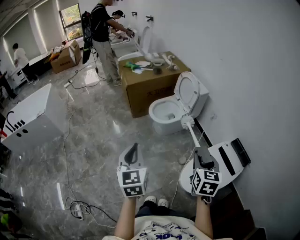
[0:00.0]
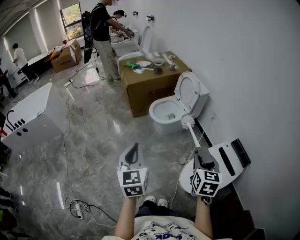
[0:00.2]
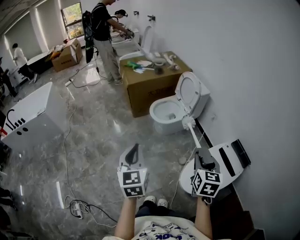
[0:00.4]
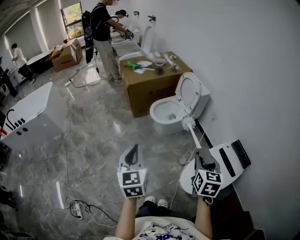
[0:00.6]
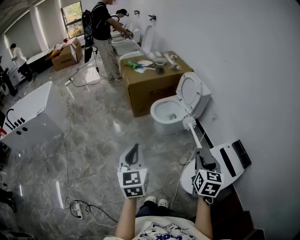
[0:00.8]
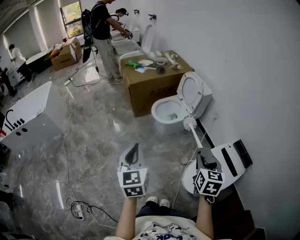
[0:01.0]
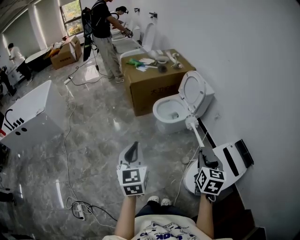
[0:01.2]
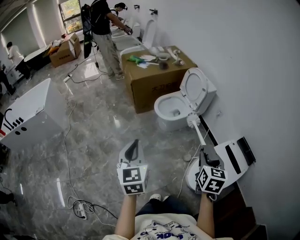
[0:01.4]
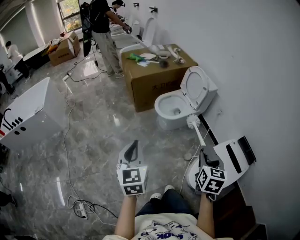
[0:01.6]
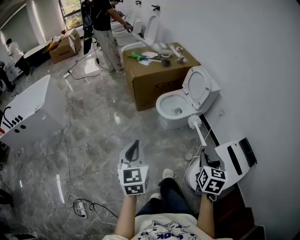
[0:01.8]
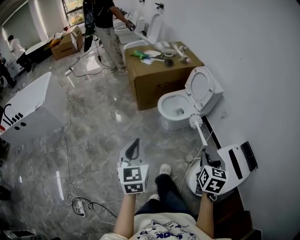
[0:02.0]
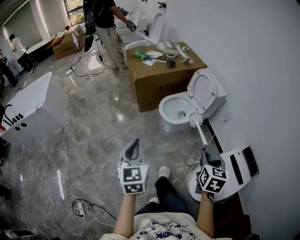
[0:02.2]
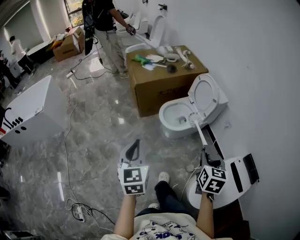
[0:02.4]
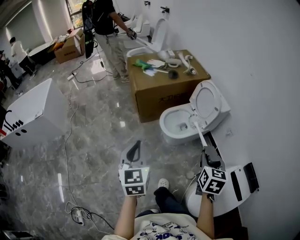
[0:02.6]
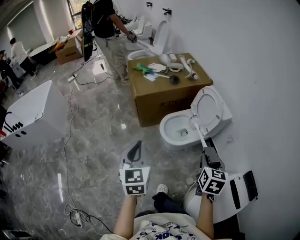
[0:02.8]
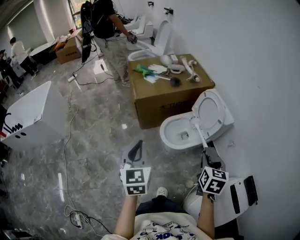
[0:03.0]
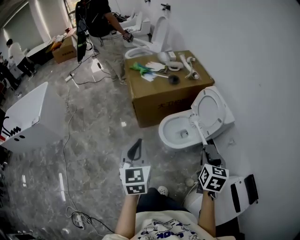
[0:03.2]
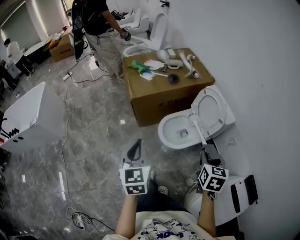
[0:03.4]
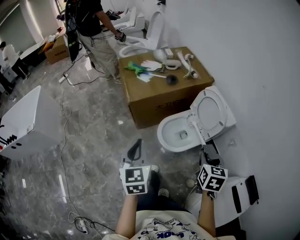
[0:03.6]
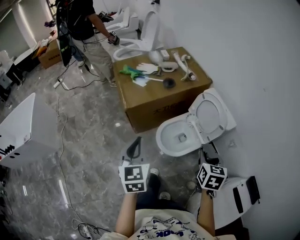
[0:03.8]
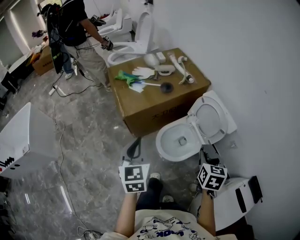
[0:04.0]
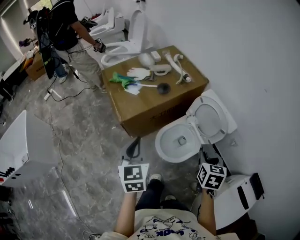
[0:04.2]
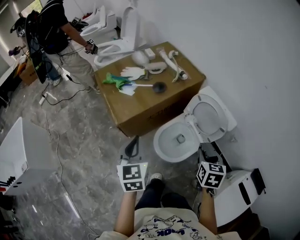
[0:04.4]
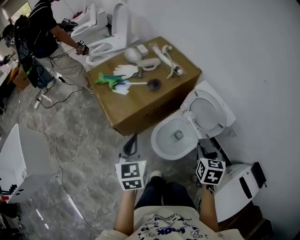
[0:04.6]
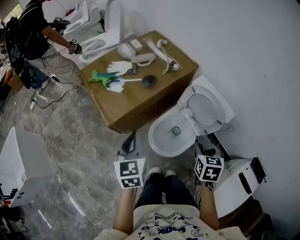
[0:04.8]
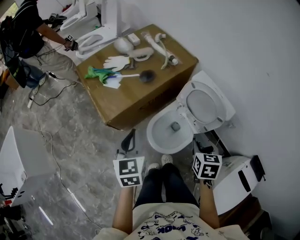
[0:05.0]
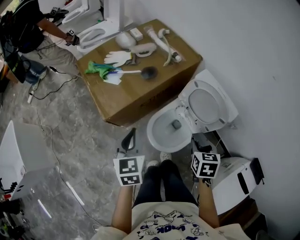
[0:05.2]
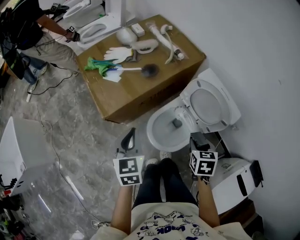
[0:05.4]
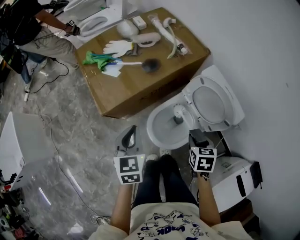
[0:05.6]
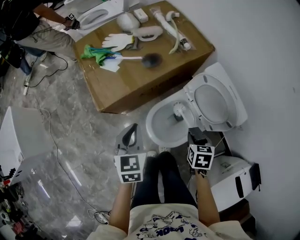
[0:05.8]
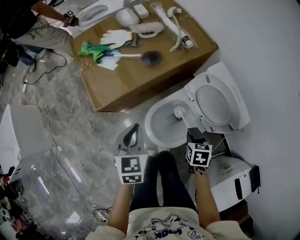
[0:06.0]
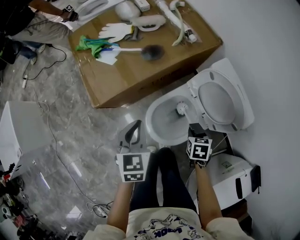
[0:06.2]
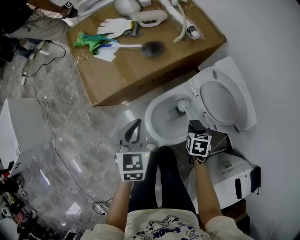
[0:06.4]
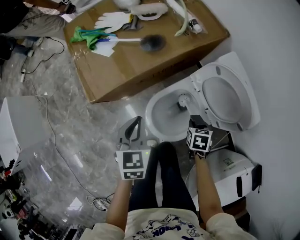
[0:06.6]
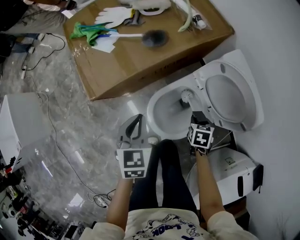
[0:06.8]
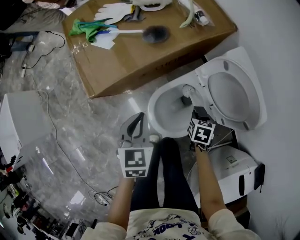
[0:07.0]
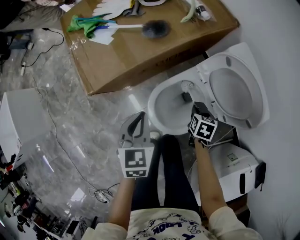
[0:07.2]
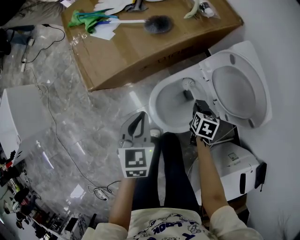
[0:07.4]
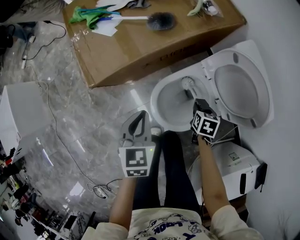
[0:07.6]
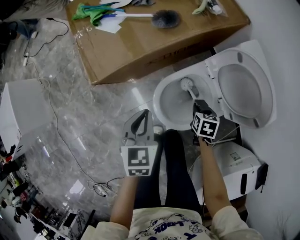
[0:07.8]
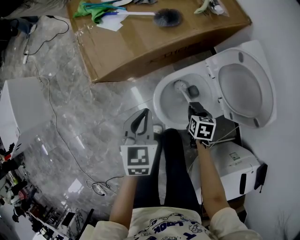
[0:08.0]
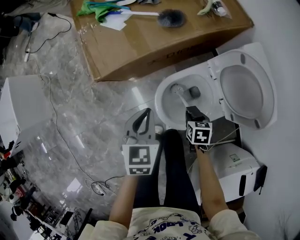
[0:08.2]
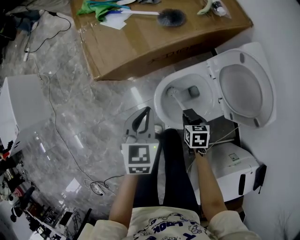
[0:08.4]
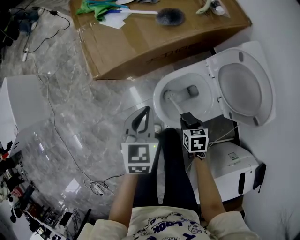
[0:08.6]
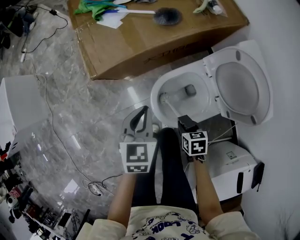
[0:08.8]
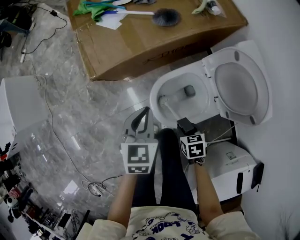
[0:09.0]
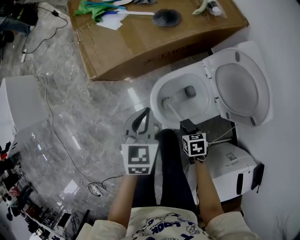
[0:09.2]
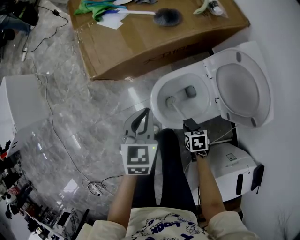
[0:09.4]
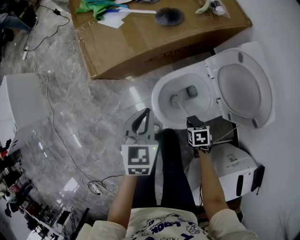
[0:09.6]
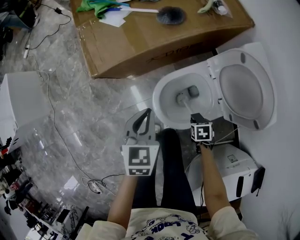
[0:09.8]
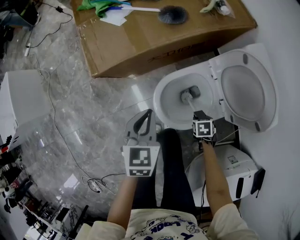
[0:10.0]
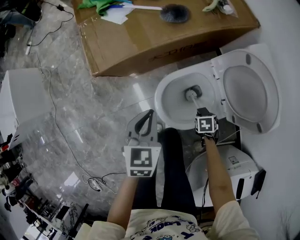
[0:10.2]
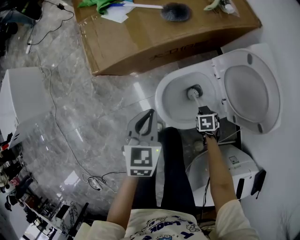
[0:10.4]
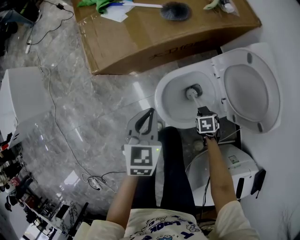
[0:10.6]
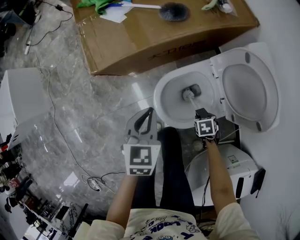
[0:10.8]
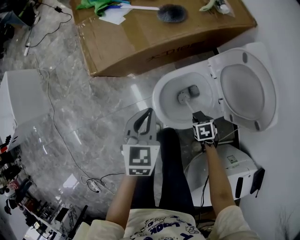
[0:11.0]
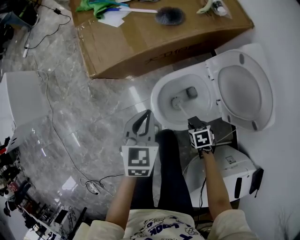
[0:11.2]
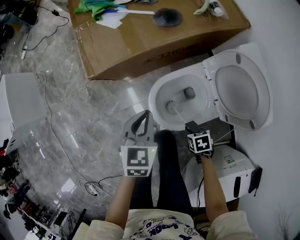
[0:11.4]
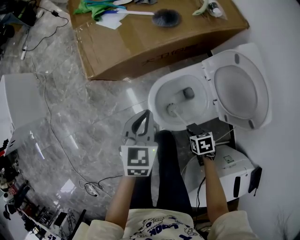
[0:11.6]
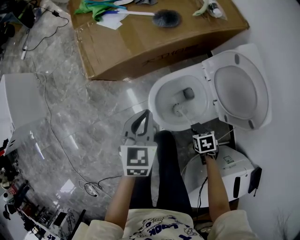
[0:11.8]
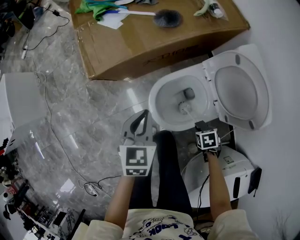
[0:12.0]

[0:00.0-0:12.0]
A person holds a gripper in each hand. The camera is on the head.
0:00.0 to 0:01.6: The grippers both shift to the left by roughly 5 cm.
0:01.6 to 0:03.0: The grippers both shift forward by about 30 cm.
0:03.0 to 0:04.4: The two grippers go about 25 cm forward.
0:04.4 to 0:06.0: Both grippers travel together downward and forward, approximately 20 cm. The right gripper turns by roughly 20 degrees.
0:06.0 to 0:07.6: The grippers both shift downward by about 10 cm.
0:07.6 to 0:09.0: The right gripper heads backward and to the left, covering about 15 cm, and swivels approximately 30 degrees.
0:09.0 to 0:10.4: The right gripper travels downward by roughly 10 cm.
0:10.4 to 0:12.0: The right gripper changes place by some 10 cm.

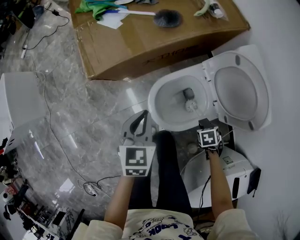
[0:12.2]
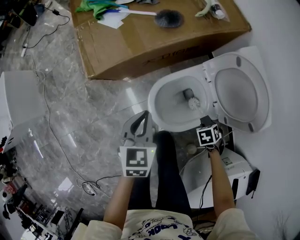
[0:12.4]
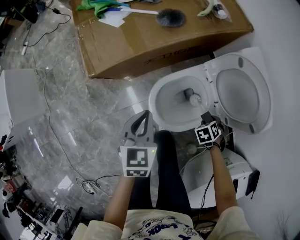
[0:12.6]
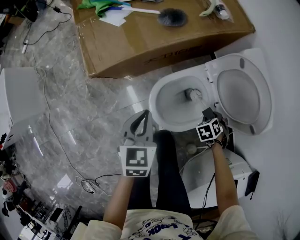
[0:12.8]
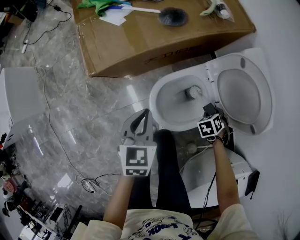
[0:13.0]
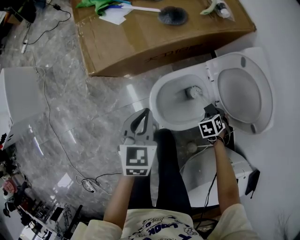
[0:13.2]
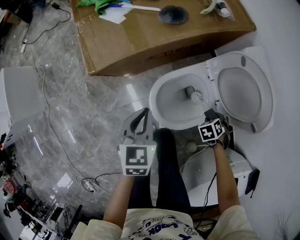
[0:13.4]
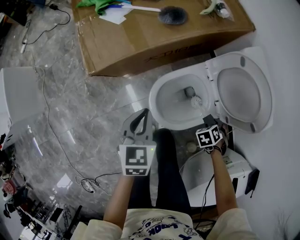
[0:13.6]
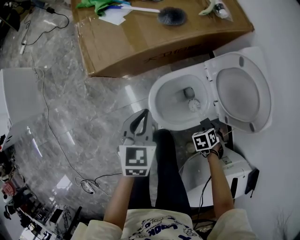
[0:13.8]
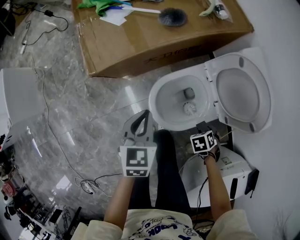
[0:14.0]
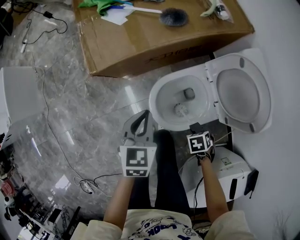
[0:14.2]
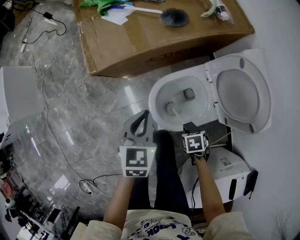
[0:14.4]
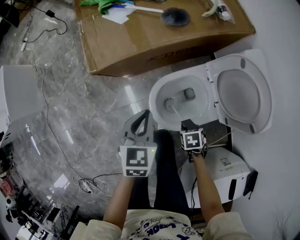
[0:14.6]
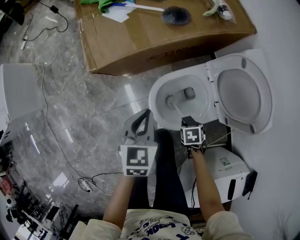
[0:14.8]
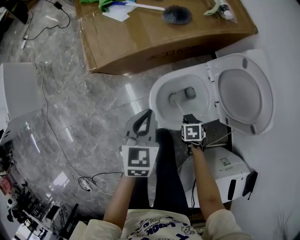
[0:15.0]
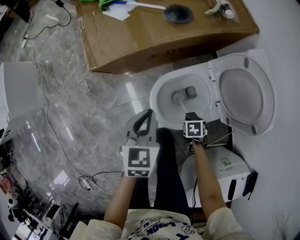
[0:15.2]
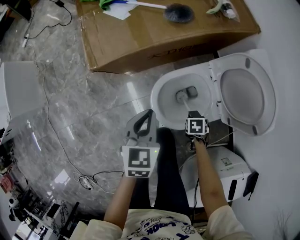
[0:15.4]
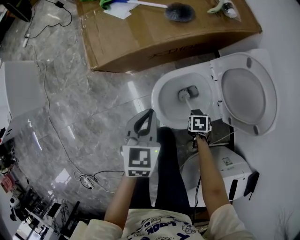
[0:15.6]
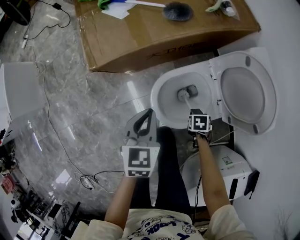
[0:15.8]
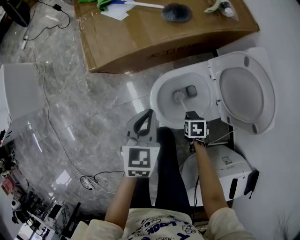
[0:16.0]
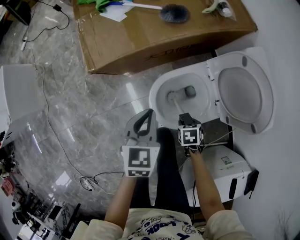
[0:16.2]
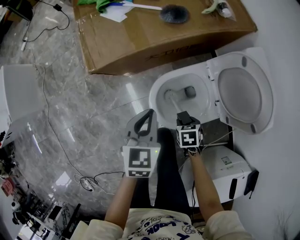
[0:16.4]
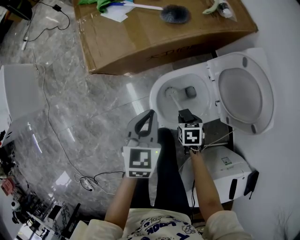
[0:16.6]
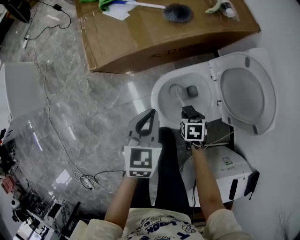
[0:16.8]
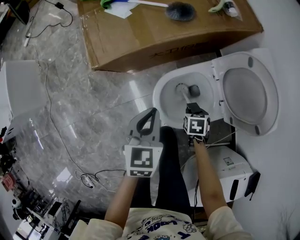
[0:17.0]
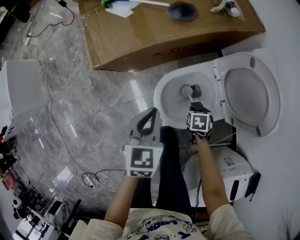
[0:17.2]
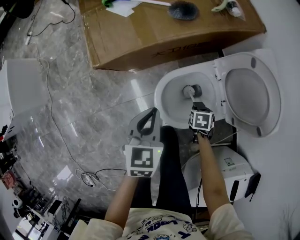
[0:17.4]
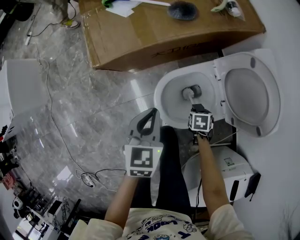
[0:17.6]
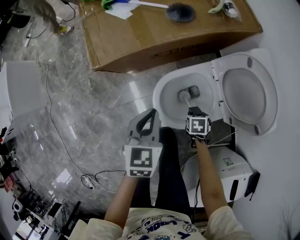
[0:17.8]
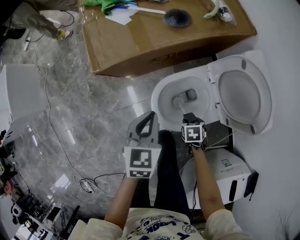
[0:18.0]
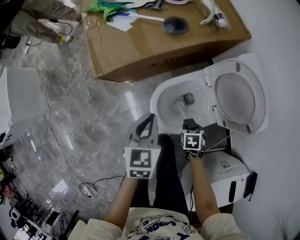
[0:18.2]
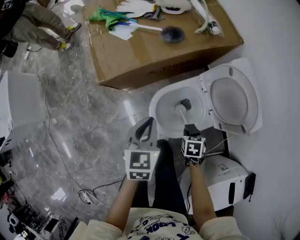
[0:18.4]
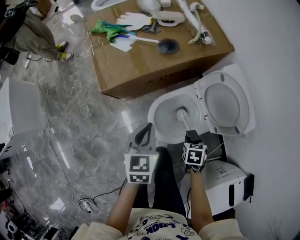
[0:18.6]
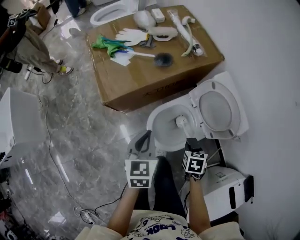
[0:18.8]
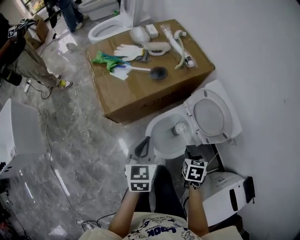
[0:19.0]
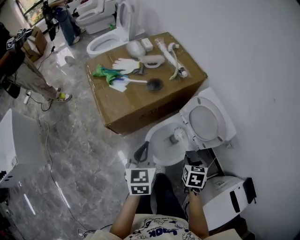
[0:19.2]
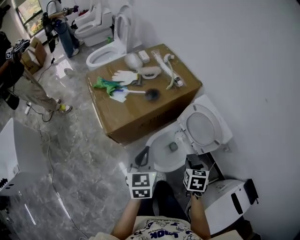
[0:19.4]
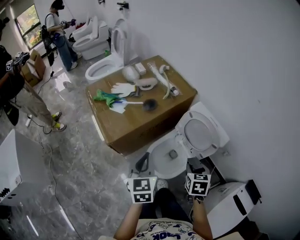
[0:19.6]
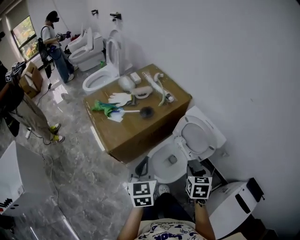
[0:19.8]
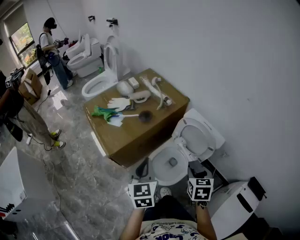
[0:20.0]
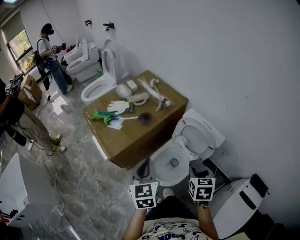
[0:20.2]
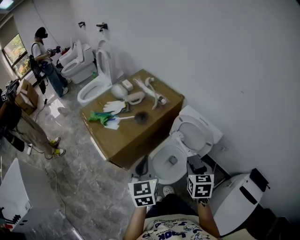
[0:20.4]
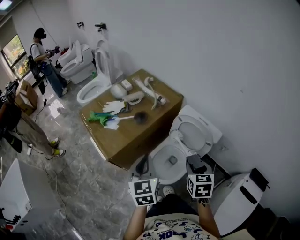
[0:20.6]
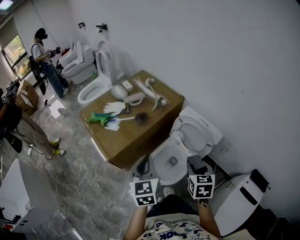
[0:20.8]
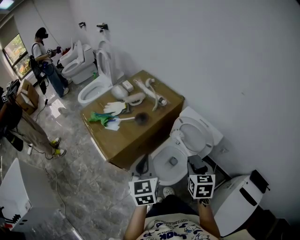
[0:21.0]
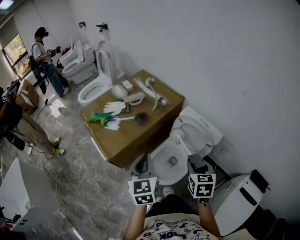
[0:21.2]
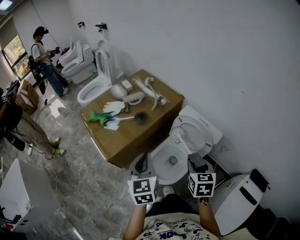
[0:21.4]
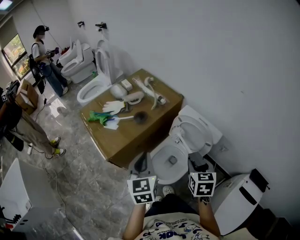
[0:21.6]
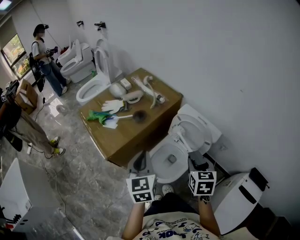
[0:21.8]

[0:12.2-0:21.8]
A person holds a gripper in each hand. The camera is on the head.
0:13.8 to 0:15.4: The right gripper ends up about 10 cm from where it was, and changes its angle by some 30 degrees.
0:15.4 to 0:17.0: The right gripper changes place by about 5 cm.
0:17.0 to 0:18.6: The left gripper is displaced upward by roughly 5 cm, while the right gripper shifts roughly 10 cm upward.
0:18.6 to 0:20.2: The left gripper travels upward by roughly 20 cm. The right gripper heads upward, covering about 30 cm, and changes its angle by about 30 degrees.
0:20.2 to 0:21.8: There are only small adjustments of the grippers.

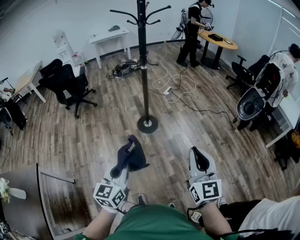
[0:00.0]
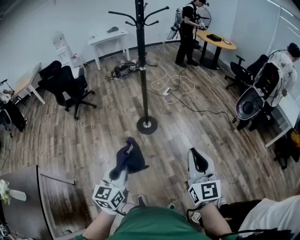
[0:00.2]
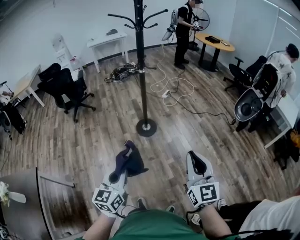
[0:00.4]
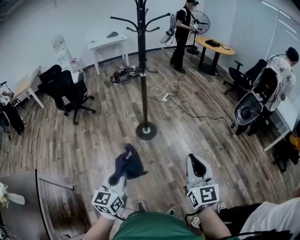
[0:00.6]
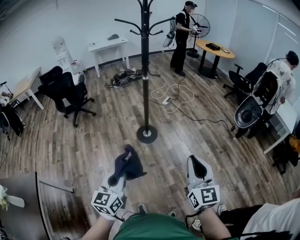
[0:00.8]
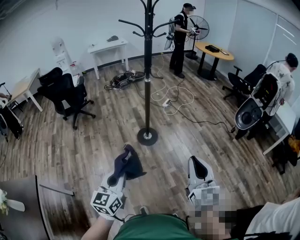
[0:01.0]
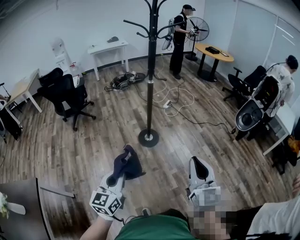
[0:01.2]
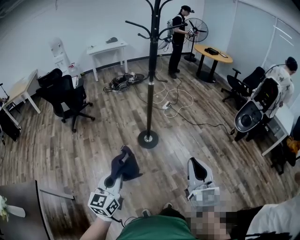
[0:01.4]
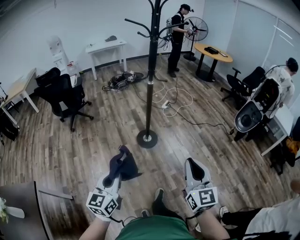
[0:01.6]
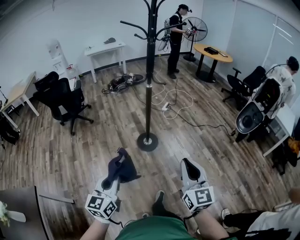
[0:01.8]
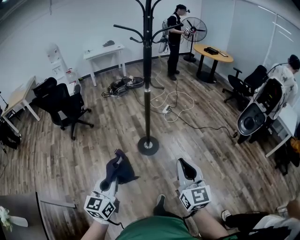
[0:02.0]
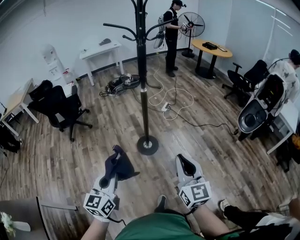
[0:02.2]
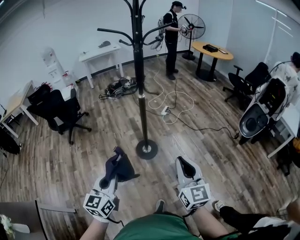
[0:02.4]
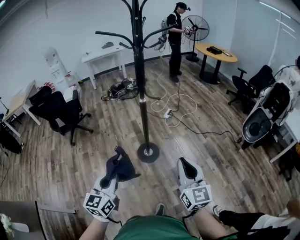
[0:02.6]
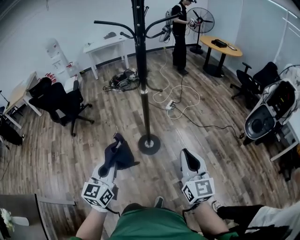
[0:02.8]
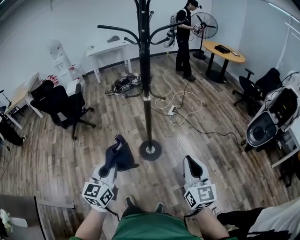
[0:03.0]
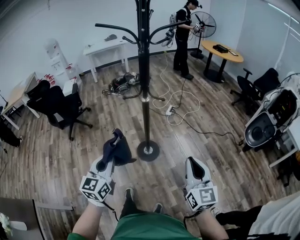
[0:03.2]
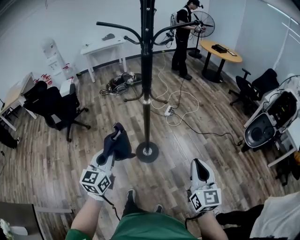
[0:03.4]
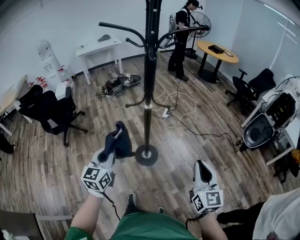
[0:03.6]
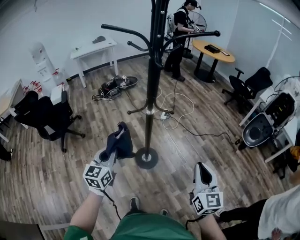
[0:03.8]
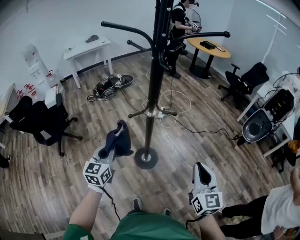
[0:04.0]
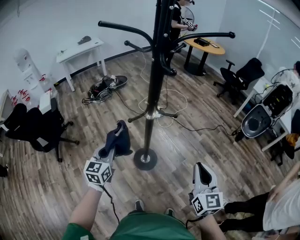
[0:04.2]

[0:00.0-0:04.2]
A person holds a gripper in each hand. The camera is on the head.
0:00.0 to 0:01.4: The two grippers go about 15 cm to the left.
0:01.4 to 0:02.8: The grippers both shift forward by some 25 cm.
0:02.8 to 0:04.2: The right gripper goes about 20 cm forward and to the left, and rotates some 20 degrees; the left gripper heads forward and to the left, covering roughly 40 cm.
